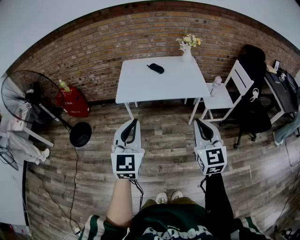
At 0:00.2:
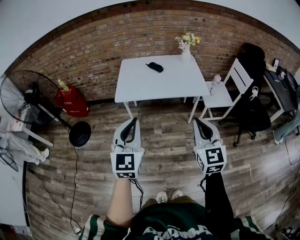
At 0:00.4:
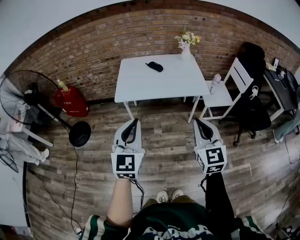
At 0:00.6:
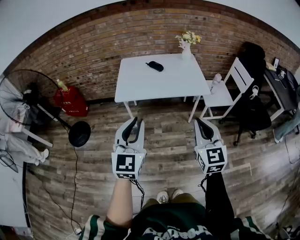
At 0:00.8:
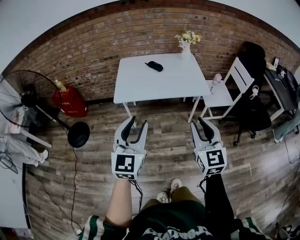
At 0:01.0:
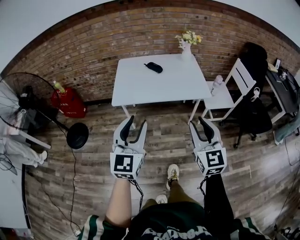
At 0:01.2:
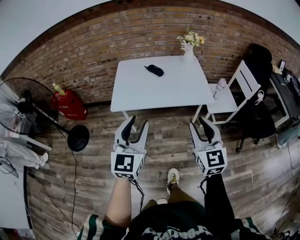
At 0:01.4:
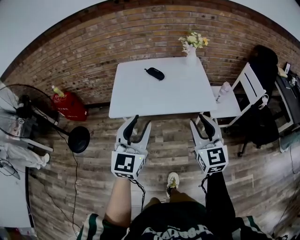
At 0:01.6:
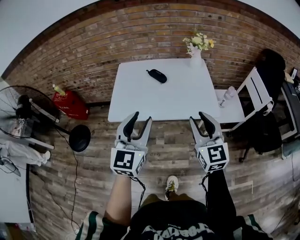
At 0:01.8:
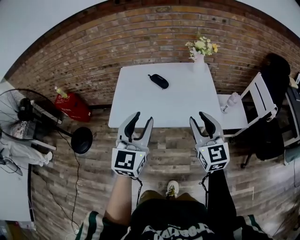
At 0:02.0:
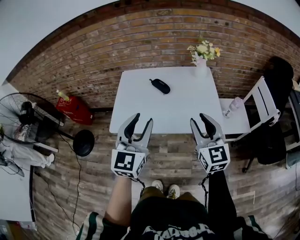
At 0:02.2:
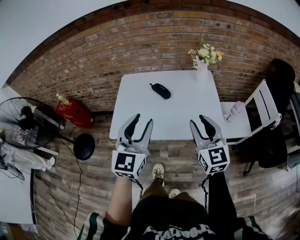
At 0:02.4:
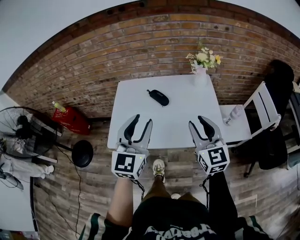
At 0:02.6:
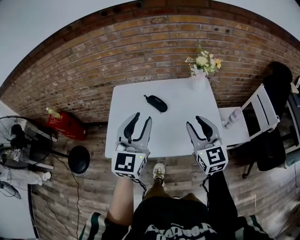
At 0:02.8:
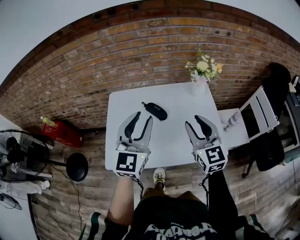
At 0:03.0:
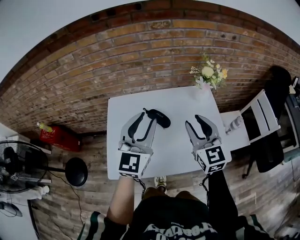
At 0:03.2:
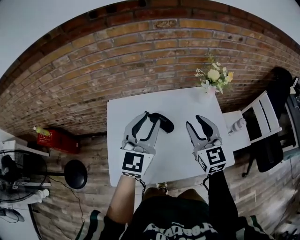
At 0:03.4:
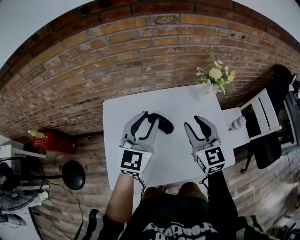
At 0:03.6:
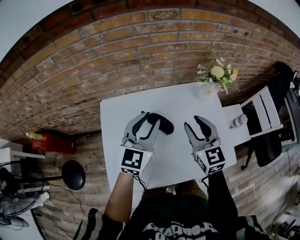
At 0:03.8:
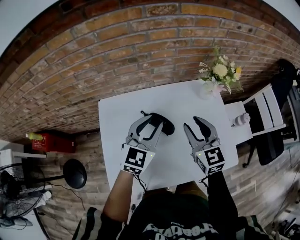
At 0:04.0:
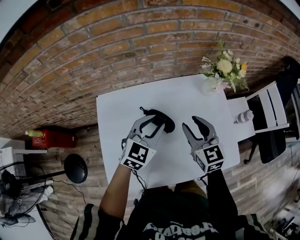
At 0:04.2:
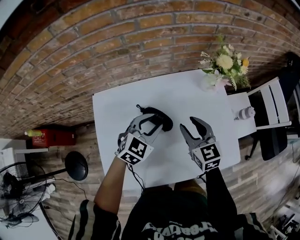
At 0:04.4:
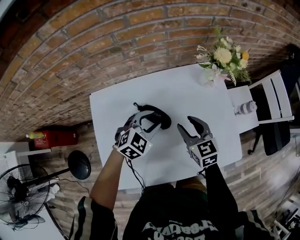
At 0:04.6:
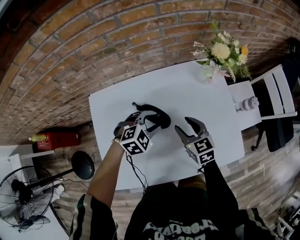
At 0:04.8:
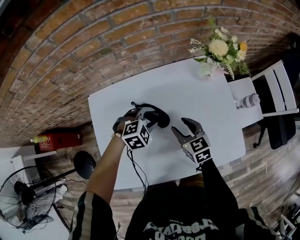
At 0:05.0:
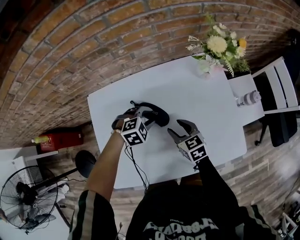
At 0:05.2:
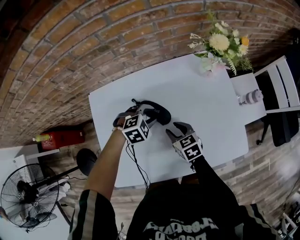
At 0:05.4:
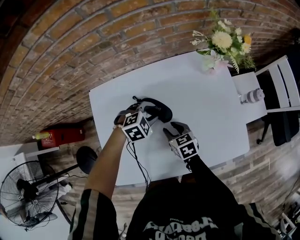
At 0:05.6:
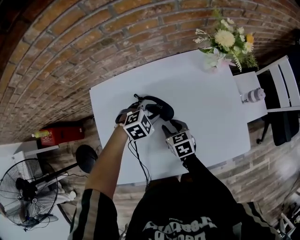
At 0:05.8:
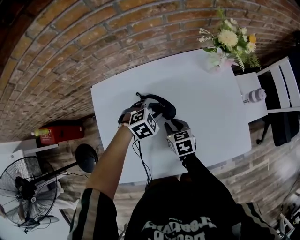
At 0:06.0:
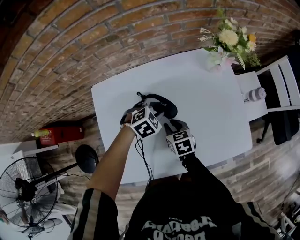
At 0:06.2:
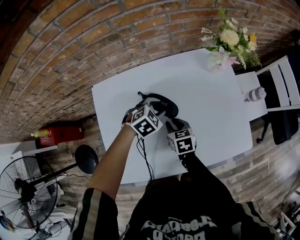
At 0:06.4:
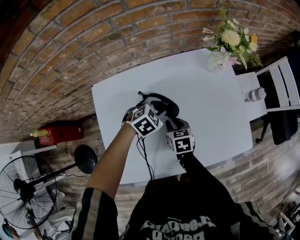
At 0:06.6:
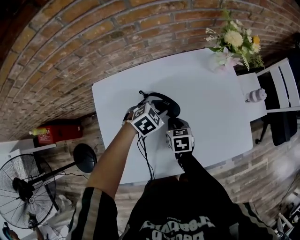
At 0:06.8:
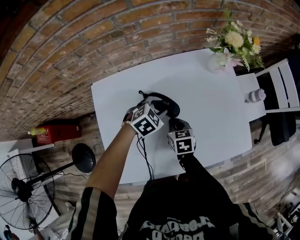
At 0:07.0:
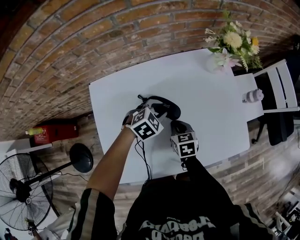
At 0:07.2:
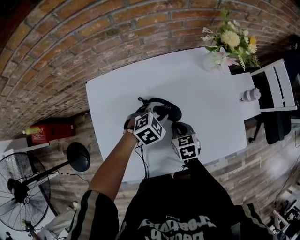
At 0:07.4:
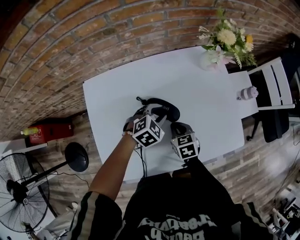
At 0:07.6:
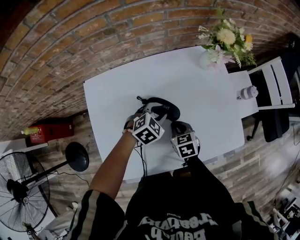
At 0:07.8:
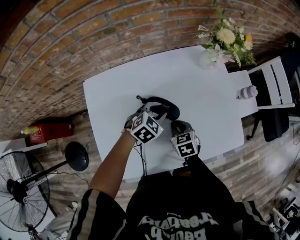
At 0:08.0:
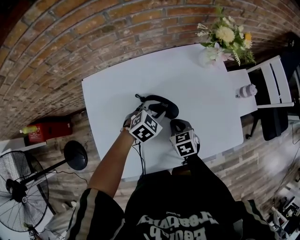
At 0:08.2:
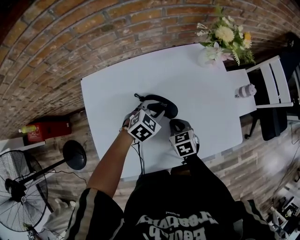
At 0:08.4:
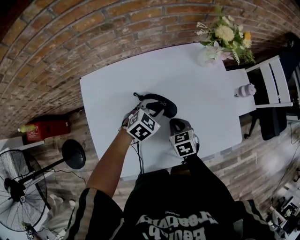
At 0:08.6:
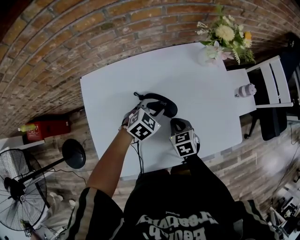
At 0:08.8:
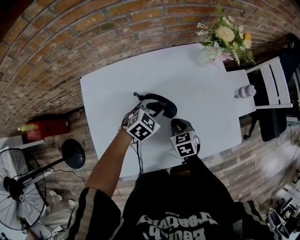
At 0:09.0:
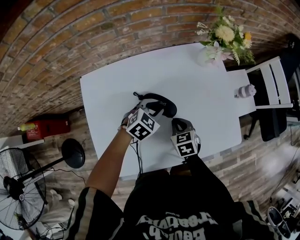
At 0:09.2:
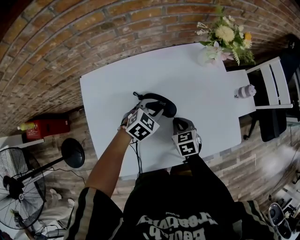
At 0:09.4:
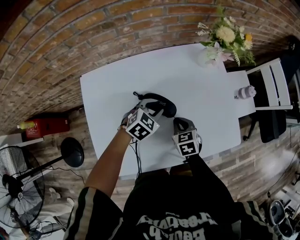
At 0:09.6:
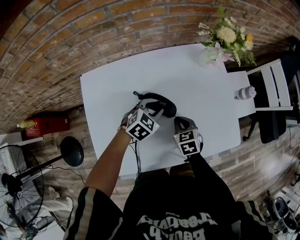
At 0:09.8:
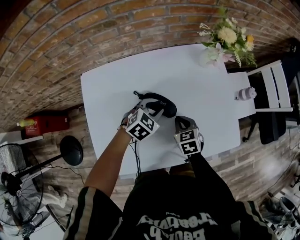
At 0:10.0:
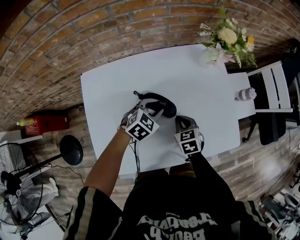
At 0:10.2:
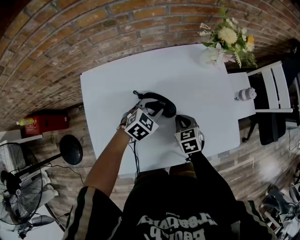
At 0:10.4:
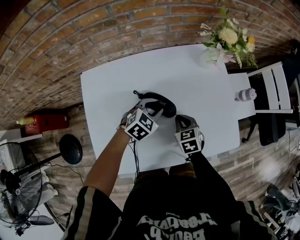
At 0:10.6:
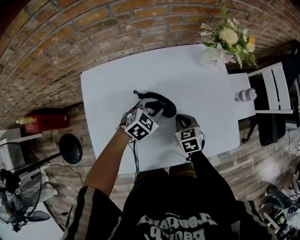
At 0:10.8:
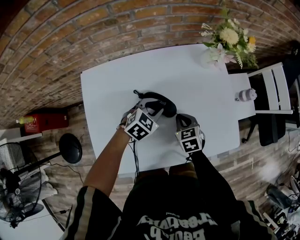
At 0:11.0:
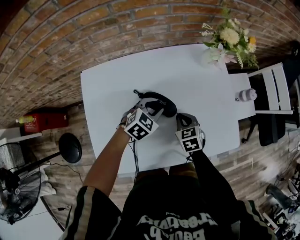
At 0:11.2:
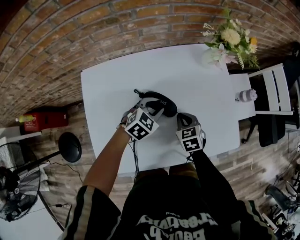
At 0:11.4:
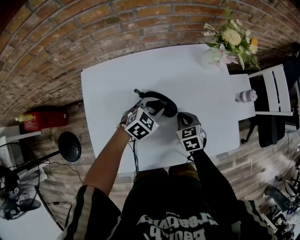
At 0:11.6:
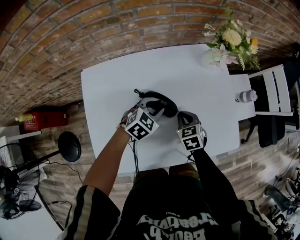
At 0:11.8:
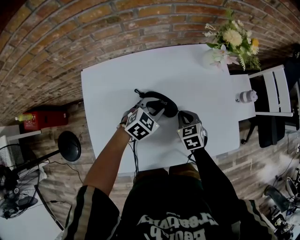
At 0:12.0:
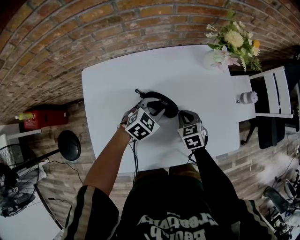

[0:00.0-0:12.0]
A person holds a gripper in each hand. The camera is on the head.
0:00.0 to 0:01.6: The grippers both shift forward by about 25 cm. The right gripper opens; the left gripper opens up.
0:01.6 to 0:03.0: The grippers both shift forward by approximately 35 cm.
0:03.0 to 0:04.4: Both grippers travel together downward and forward, roughly 25 cm. The left gripper tilts its fingers about 40 degrees downward. Meanwhile the right gripper turns by about 30 degrees.
0:04.4 to 0:06.0: The left gripper heads downward, covering approximately 10 cm, and changes its angle by approximately 20 degrees. The right gripper moves downward, to the left and backward, roughly 15 cm, and changes its angle by some 20 degrees.
0:06.0 to 0:07.6: The right gripper travels to the right by some 5 cm.
0:07.6 to 0:12.0: The grippers make only small movements.

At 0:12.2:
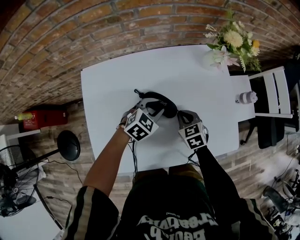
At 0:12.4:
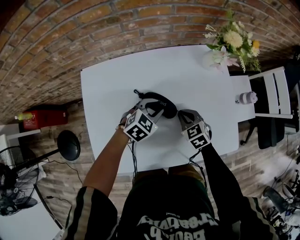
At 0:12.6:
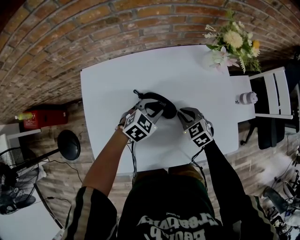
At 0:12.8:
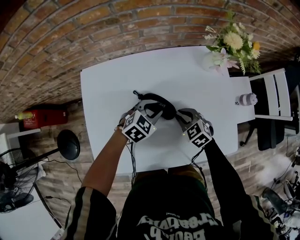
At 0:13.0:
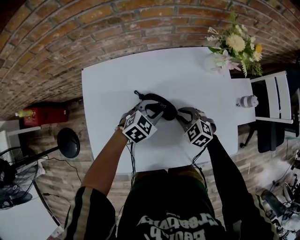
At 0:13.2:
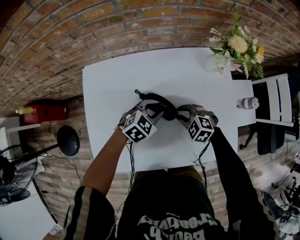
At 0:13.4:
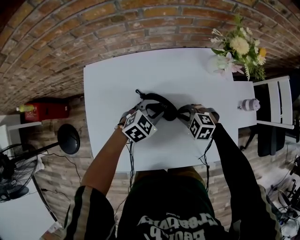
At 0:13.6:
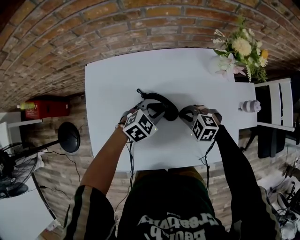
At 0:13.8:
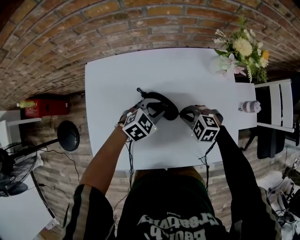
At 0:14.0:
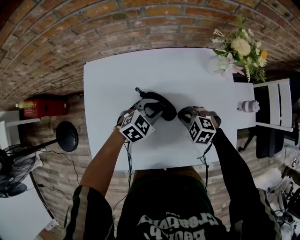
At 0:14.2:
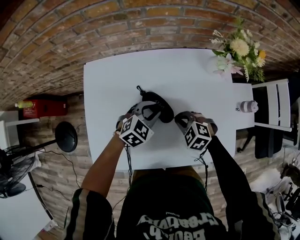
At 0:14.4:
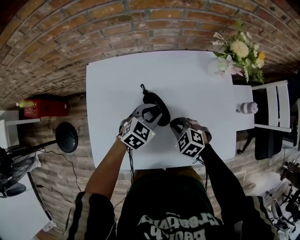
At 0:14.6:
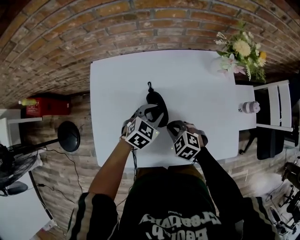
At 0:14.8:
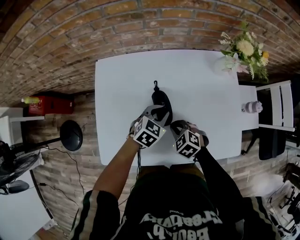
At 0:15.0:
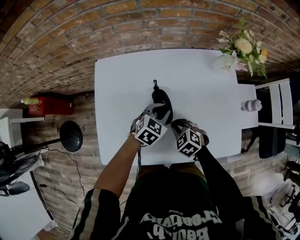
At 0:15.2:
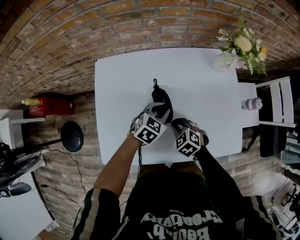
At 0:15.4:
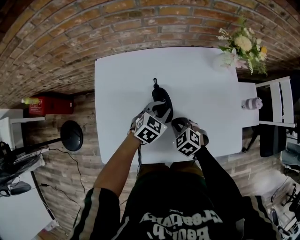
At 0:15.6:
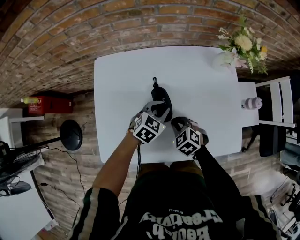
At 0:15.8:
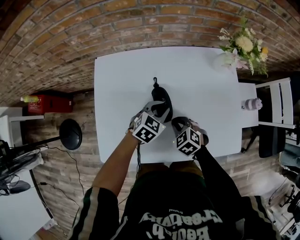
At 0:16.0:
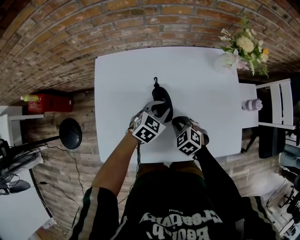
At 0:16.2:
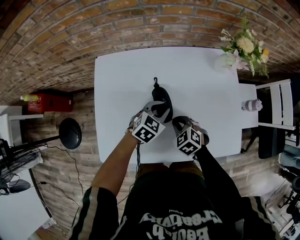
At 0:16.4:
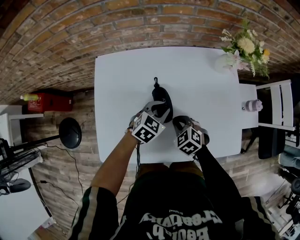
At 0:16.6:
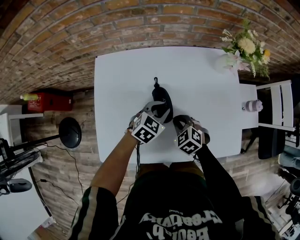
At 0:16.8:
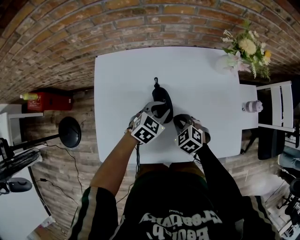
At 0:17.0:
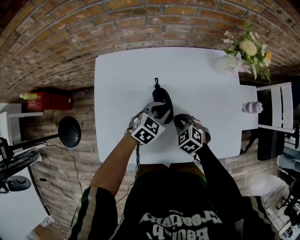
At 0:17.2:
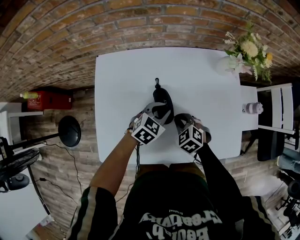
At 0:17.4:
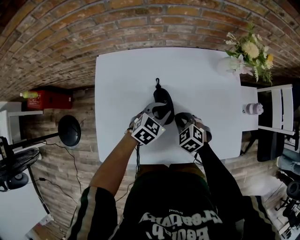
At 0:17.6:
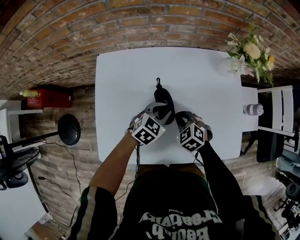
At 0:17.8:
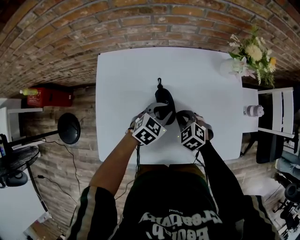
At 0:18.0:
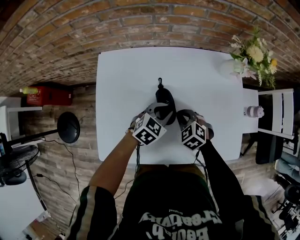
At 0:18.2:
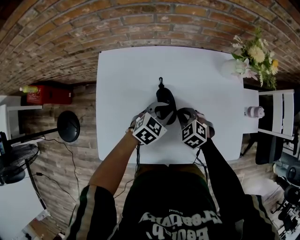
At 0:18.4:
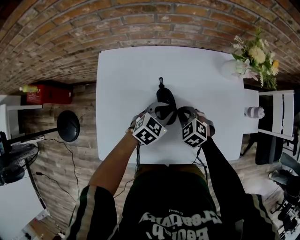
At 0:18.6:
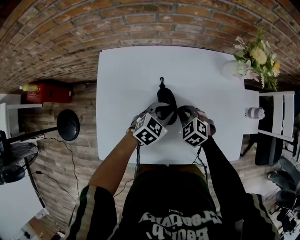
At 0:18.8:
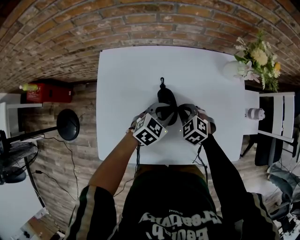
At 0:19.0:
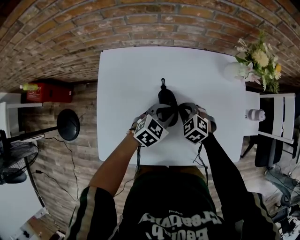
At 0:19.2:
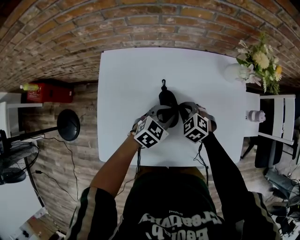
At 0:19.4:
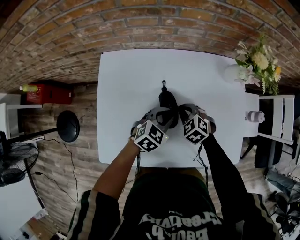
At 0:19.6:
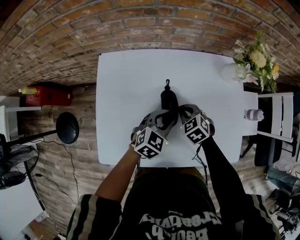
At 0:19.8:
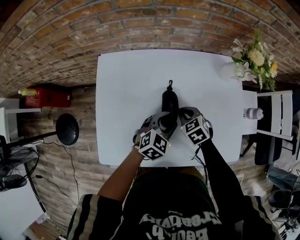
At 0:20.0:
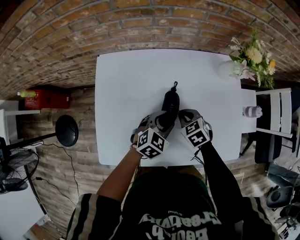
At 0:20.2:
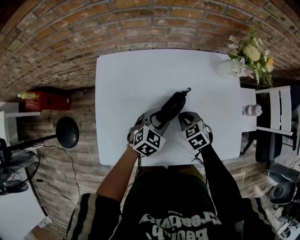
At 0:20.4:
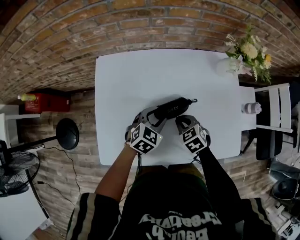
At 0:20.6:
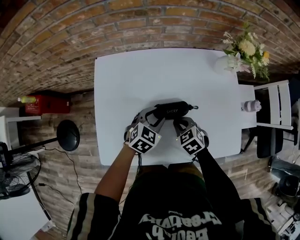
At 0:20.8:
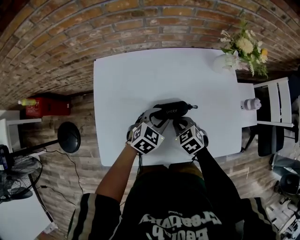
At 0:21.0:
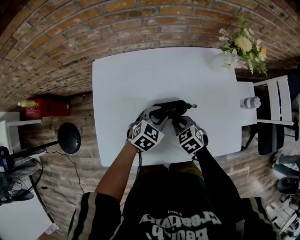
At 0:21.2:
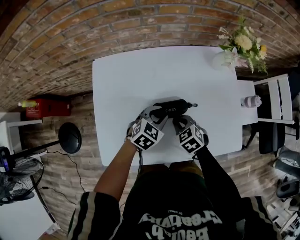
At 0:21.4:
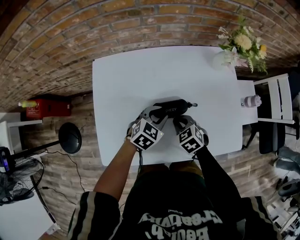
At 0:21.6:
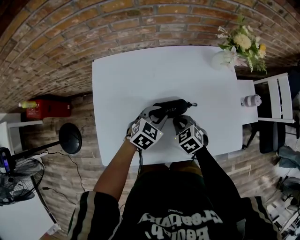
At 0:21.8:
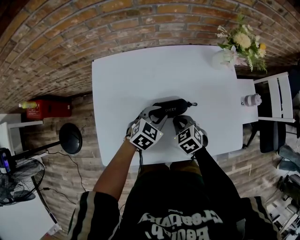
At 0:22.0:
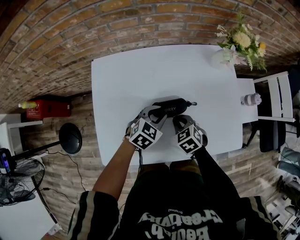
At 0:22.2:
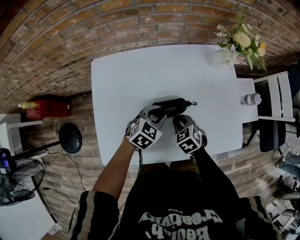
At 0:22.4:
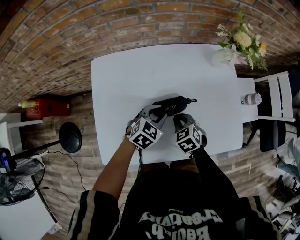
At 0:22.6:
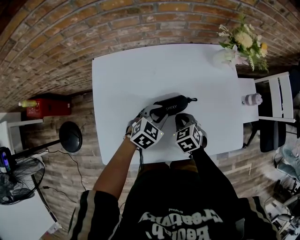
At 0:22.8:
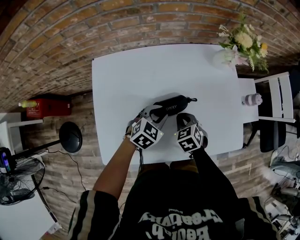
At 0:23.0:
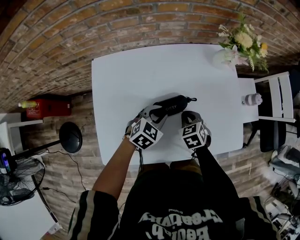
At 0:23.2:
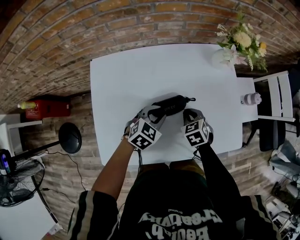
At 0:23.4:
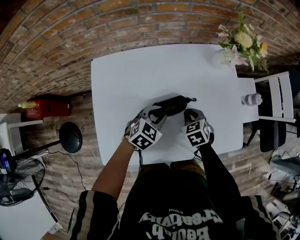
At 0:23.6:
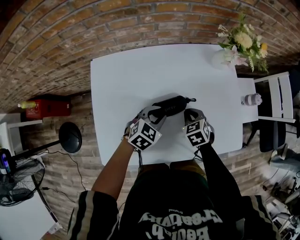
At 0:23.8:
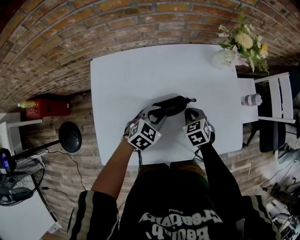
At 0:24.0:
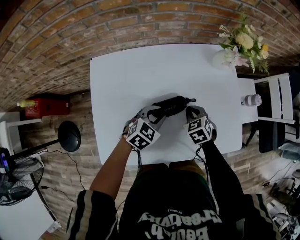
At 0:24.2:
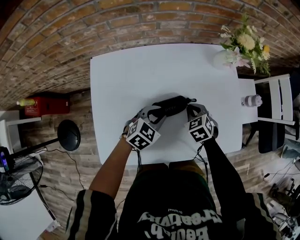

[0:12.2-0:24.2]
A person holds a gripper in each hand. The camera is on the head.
0:12.2 to 0:13.8: The right gripper rolls counterclockwise, seen from behind, by approximately 50 degrees.
0:13.8 to 0:15.2: The right gripper ends up about 10 cm from where it was, and swivels about 20 degrees.
0:15.2 to 0:18.2: The grippers make only small movements.
0:18.2 to 0:19.8: The left gripper opens its fingers.
0:19.8 to 0:21.2: The right gripper goes about 5 cm backward.
0:21.2 to 0:22.6: The grippers move only a little.
0:22.6 to 0:24.2: The right gripper goes some 5 cm forward.
